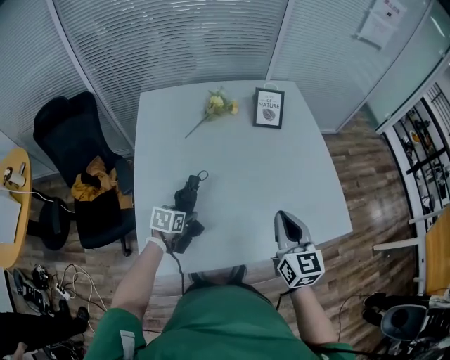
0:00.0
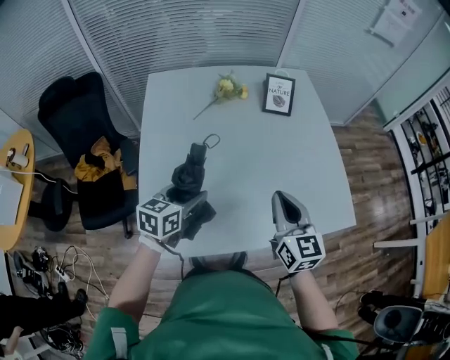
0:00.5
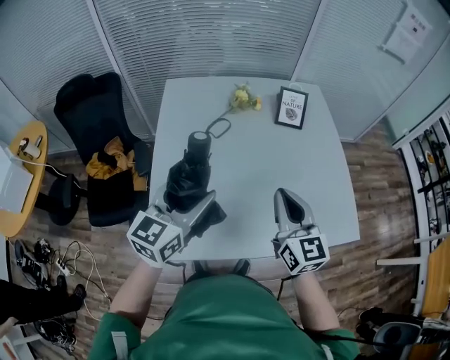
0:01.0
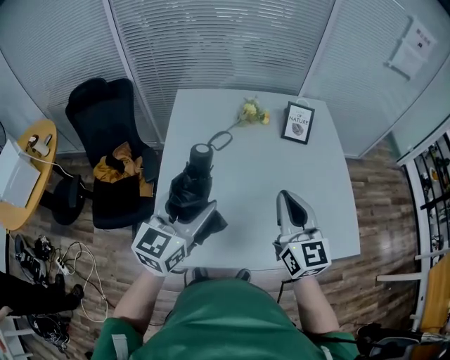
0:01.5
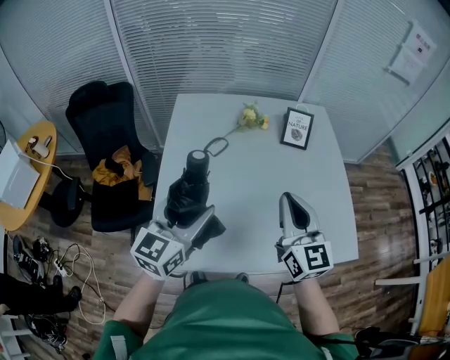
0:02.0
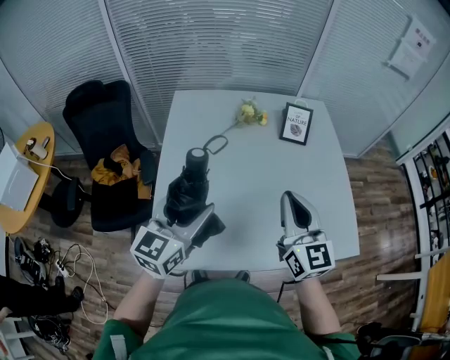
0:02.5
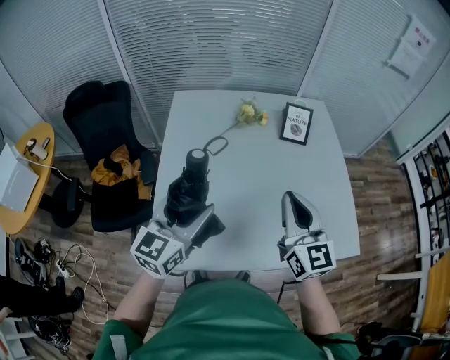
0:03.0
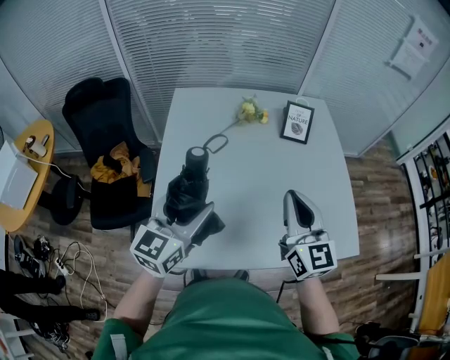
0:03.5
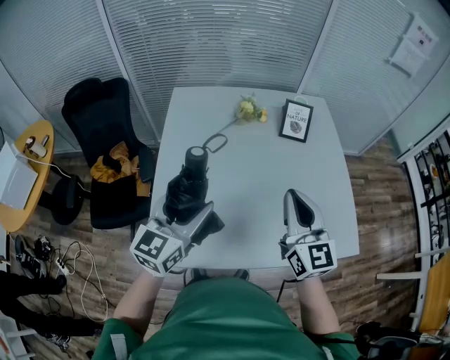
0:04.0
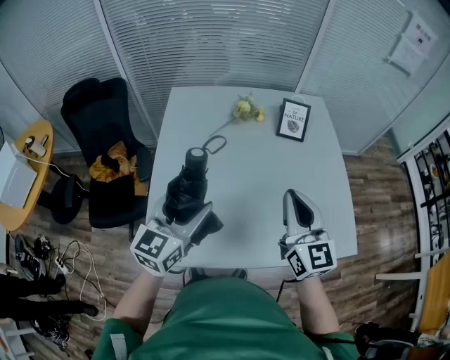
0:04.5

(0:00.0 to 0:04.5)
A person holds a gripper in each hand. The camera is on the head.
0:00.0 - 0:02.0: The right gripper shifts approximately 10 cm upward and to the left. Meanwhile the left gripper shifts approximately 30 cm upward, and tips its fingers upward by roughly 50 degrees.
0:02.0 - 0:04.5: The grippers stay close to where they were, moving slightly.

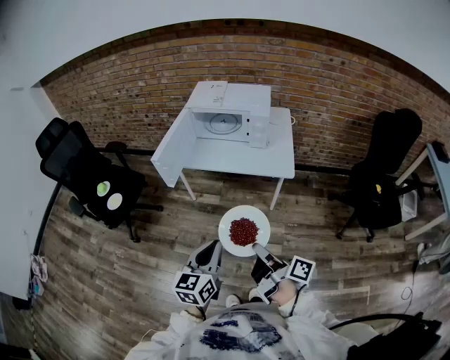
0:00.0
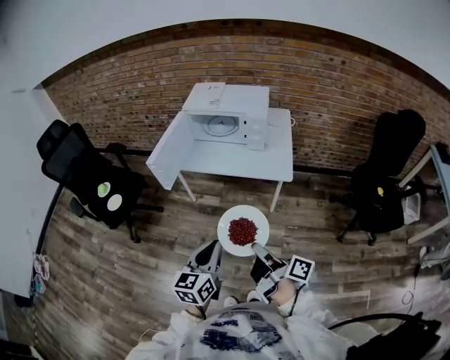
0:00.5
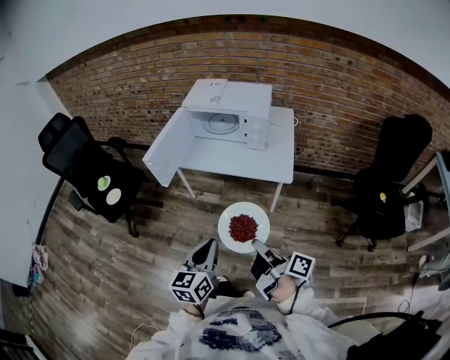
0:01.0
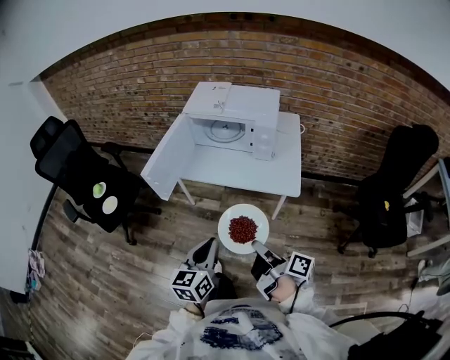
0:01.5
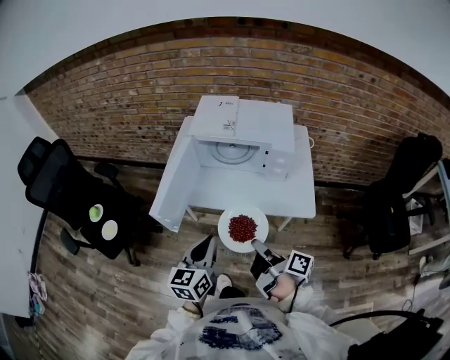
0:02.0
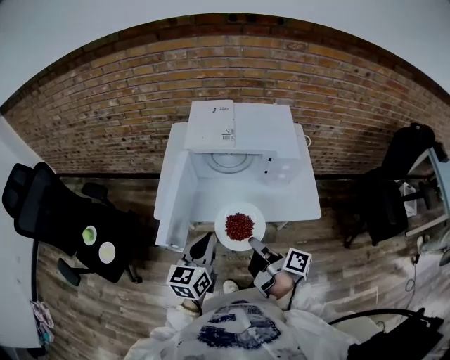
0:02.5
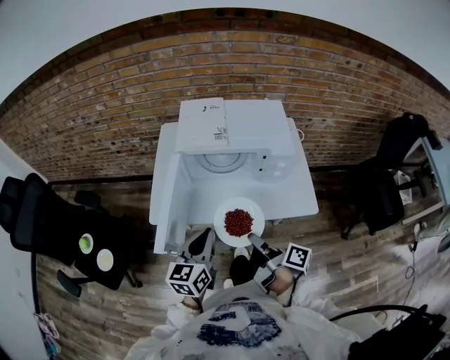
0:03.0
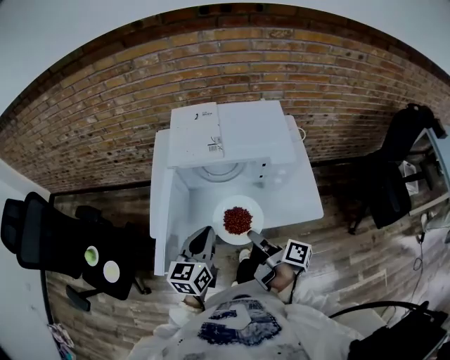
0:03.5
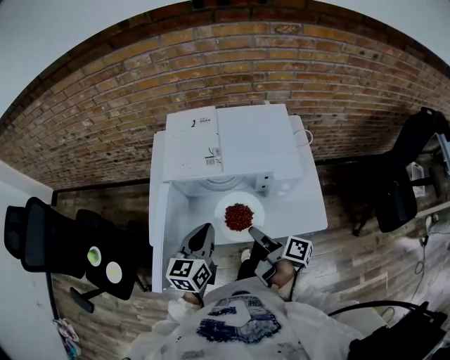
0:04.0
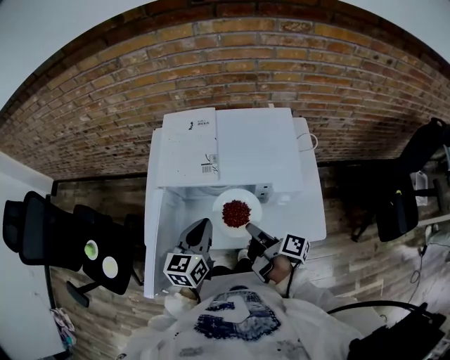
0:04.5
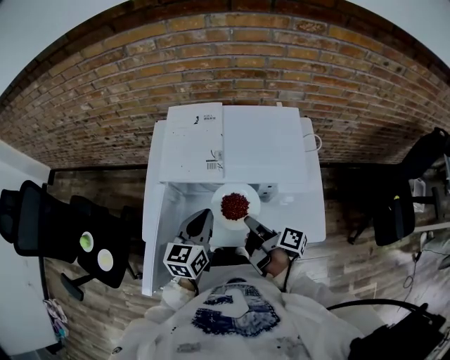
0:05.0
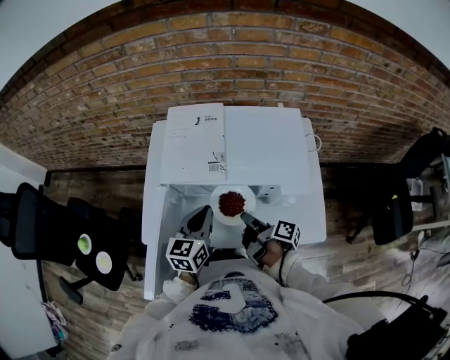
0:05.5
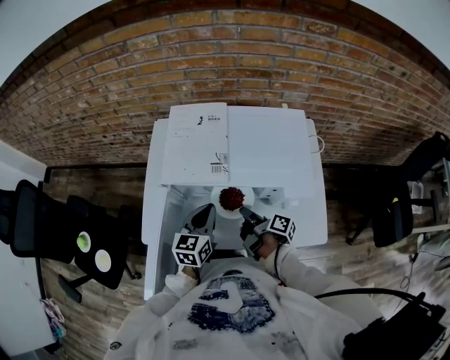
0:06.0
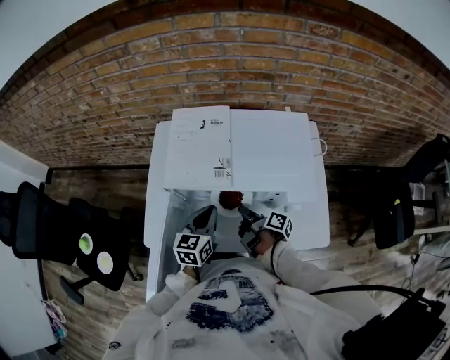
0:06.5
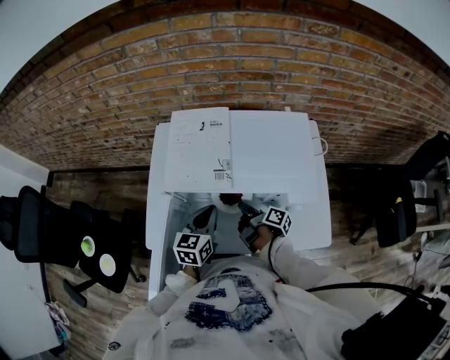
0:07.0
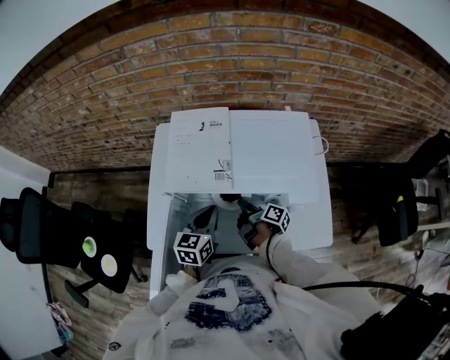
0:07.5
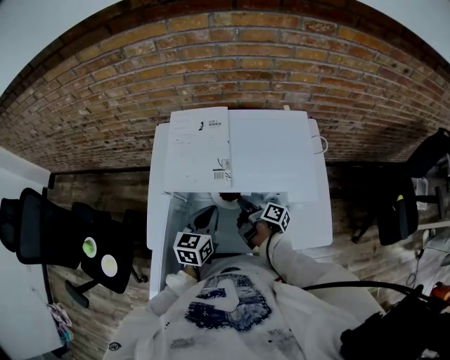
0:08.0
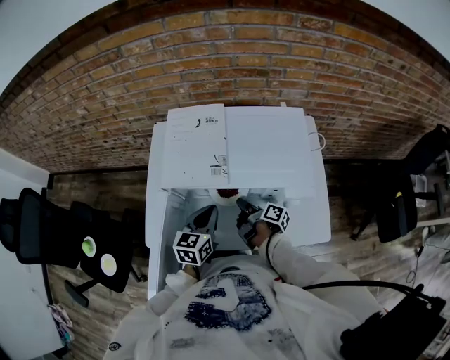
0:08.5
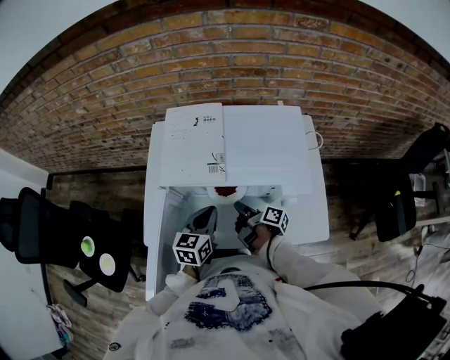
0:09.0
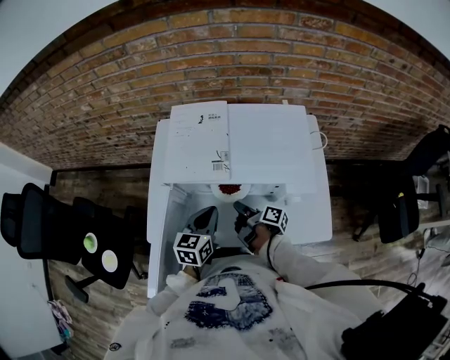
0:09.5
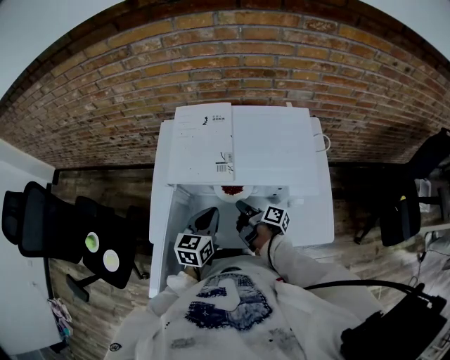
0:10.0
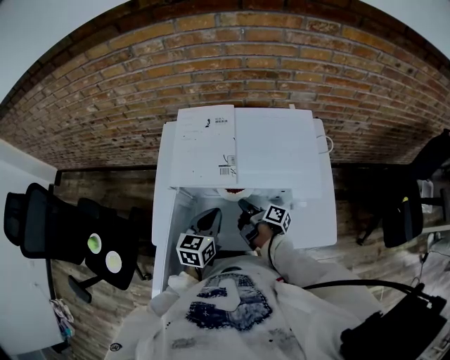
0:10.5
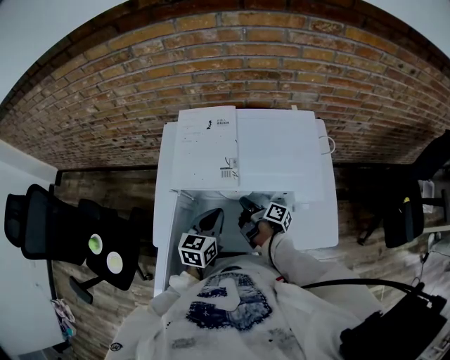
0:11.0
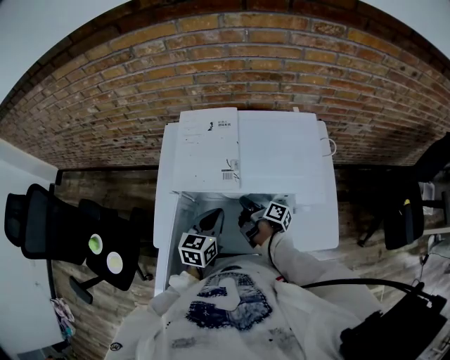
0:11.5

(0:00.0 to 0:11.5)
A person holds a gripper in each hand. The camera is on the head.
0:00.0 - 0:02.0: The left gripper changes place by roughly 30 cm.
0:02.0 - 0:04.0: The left gripper ends up approximately 25 cm from where it was.
0:04.0 - 0:06.0: The left gripper shifts by approximately 15 cm.

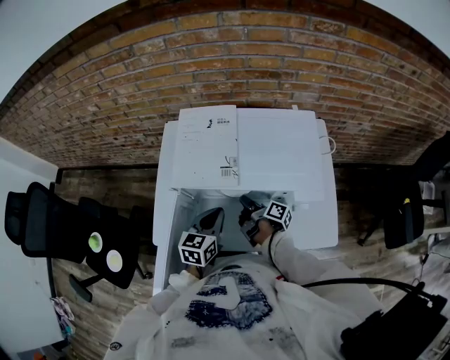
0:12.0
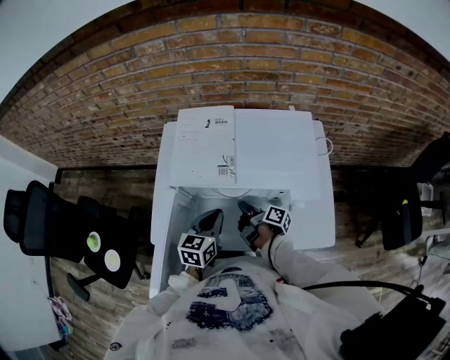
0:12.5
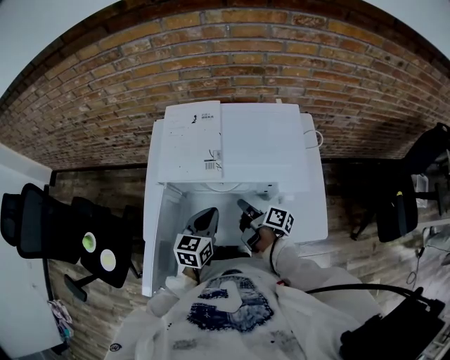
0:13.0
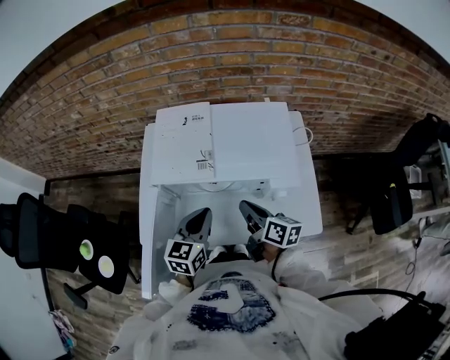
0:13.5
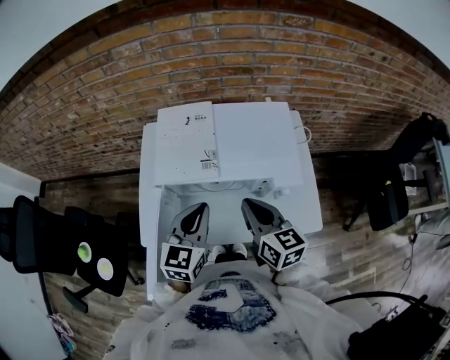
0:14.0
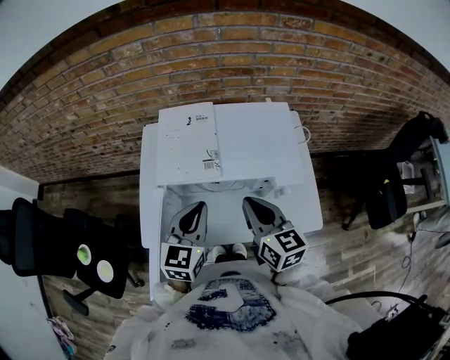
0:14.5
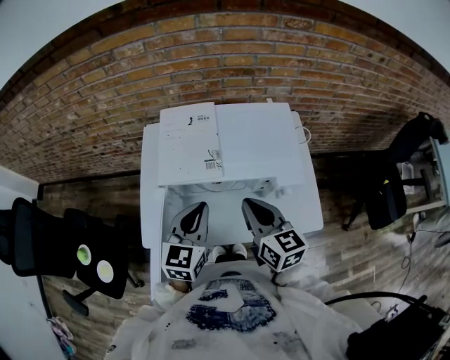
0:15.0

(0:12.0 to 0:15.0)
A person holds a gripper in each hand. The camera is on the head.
0:12.0 - 0:13.5: The left gripper shifts roughly 5 cm upward.
0:13.5 - 0:15.0: The left gripper travels upward by about 5 cm.

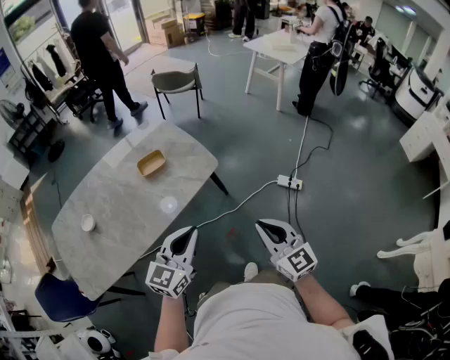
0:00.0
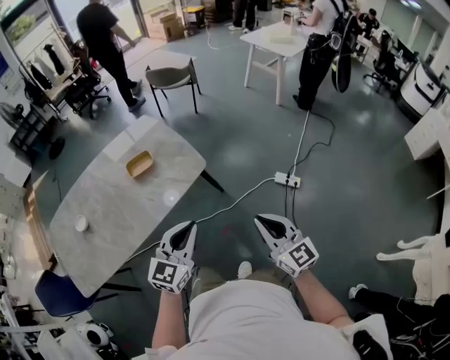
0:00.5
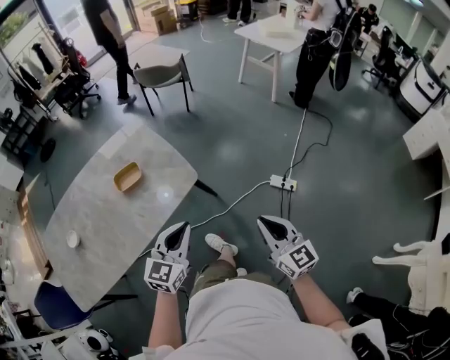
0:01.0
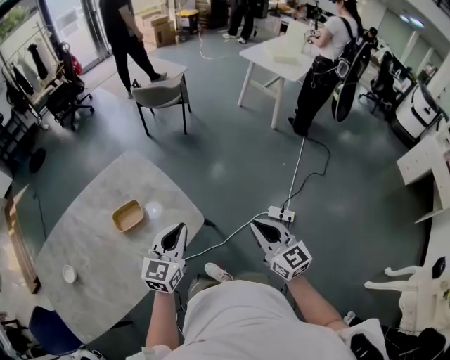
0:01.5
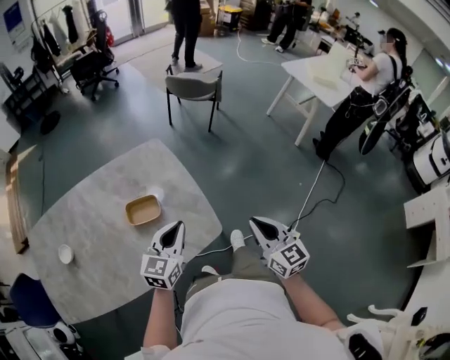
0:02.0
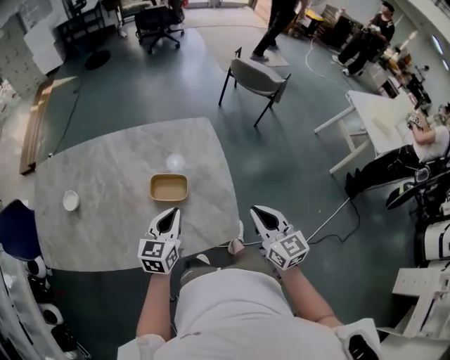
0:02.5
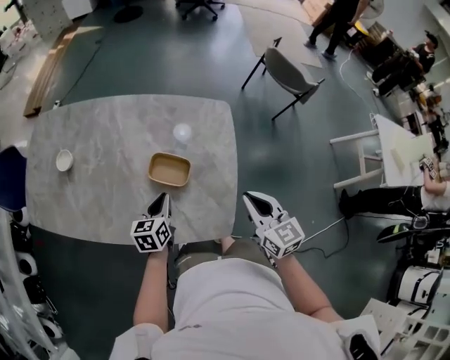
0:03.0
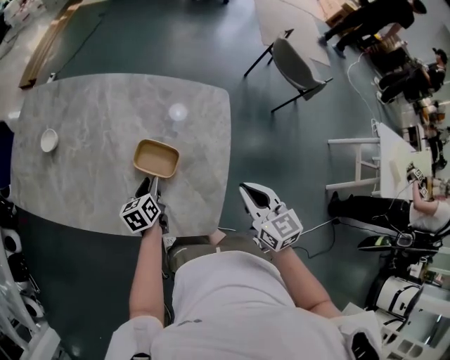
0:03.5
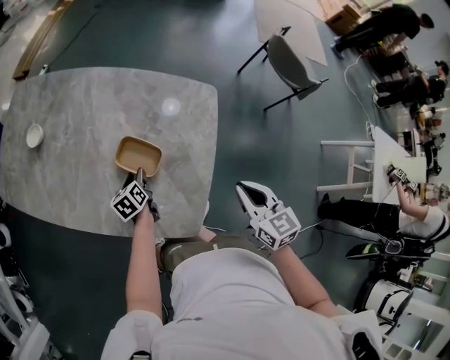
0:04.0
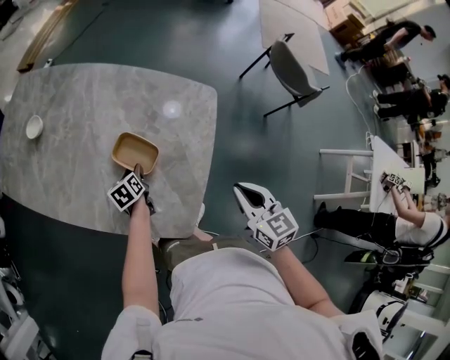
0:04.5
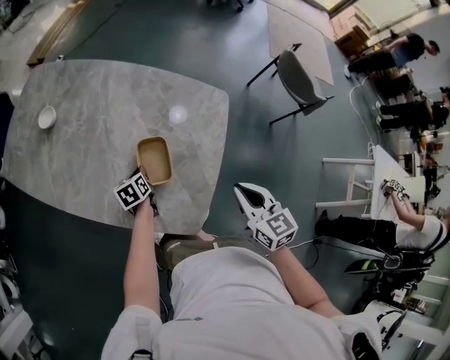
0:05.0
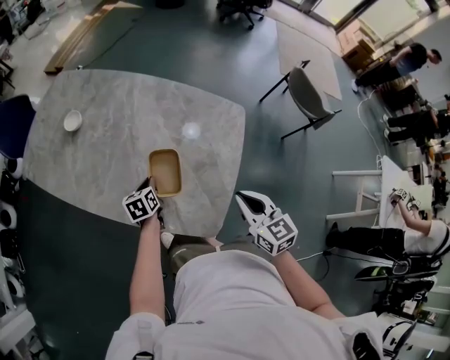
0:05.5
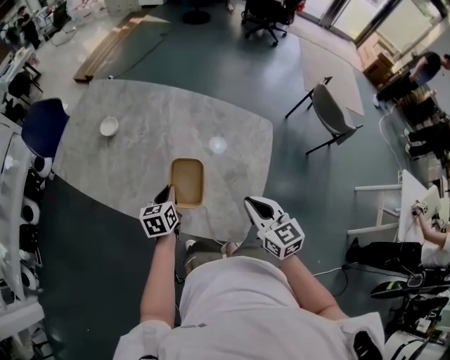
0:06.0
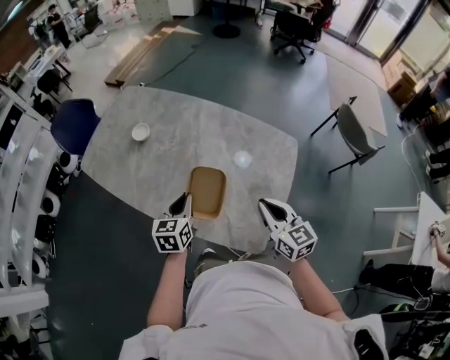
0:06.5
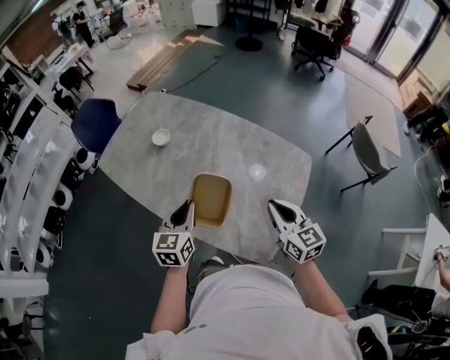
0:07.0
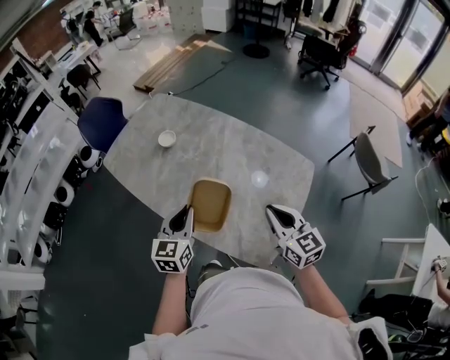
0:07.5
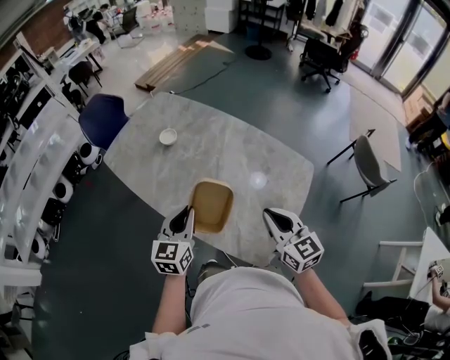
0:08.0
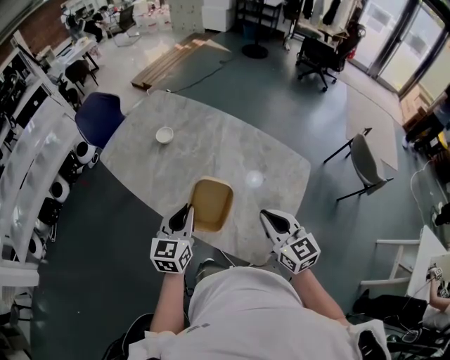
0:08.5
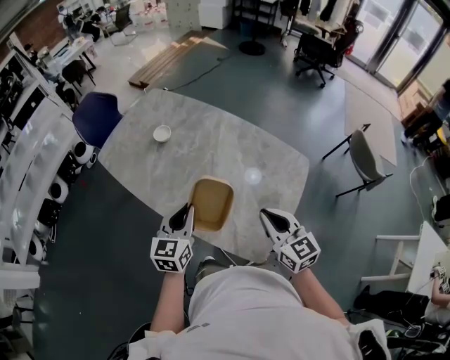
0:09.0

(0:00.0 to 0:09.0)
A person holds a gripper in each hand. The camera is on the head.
0:00.0 - 0:02.0: The grippers both shift forward by roughly 40 cm. The left gripper turns by some 20 degrees.
0:02.0 - 0:04.5: The right gripper changes place by approximately 30 cm, and rotates about 50 degrees; the left gripper moves downward, approximately 30 cm, tilts its fingers some 40 degrees downward, and opens.
0:04.5 - 0:07.0: The right gripper goes about 25 cm to the left, upward and forward. Meanwhile the left gripper heads upward and to the left, covering some 35 cm, swivels approximately 40 degrees, and closes.
0:07.0 - 0:09.0: The grippers move only a little.
